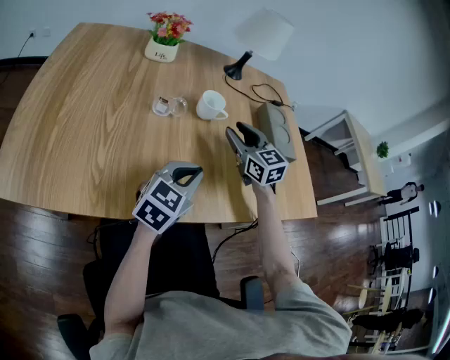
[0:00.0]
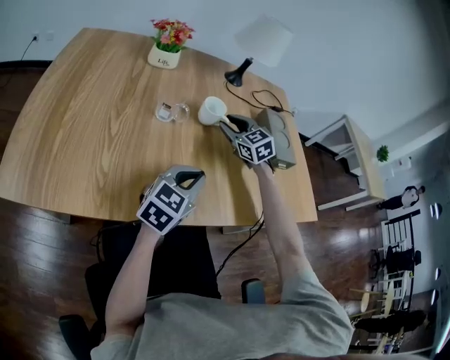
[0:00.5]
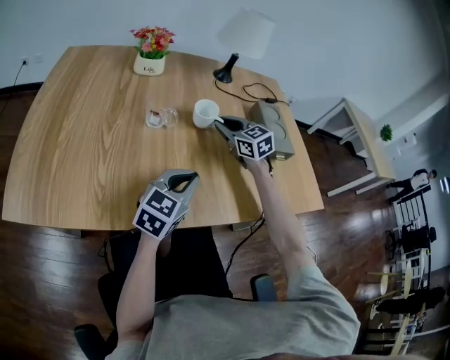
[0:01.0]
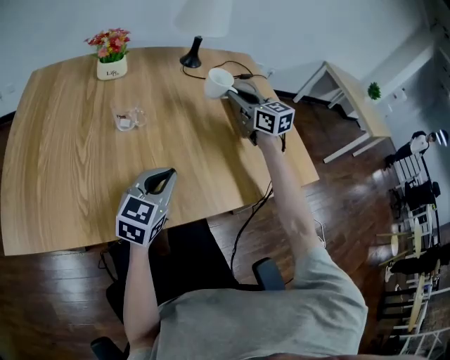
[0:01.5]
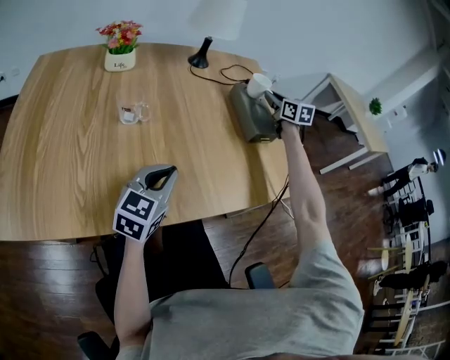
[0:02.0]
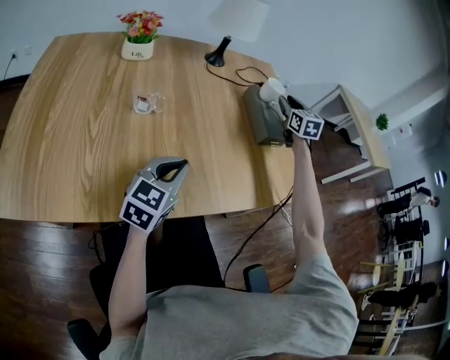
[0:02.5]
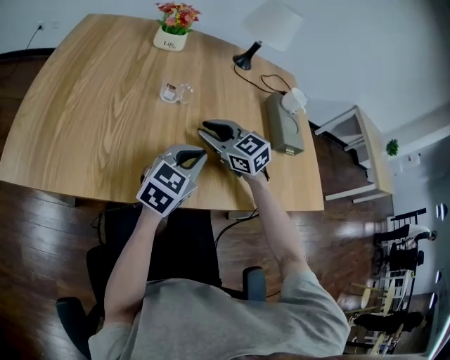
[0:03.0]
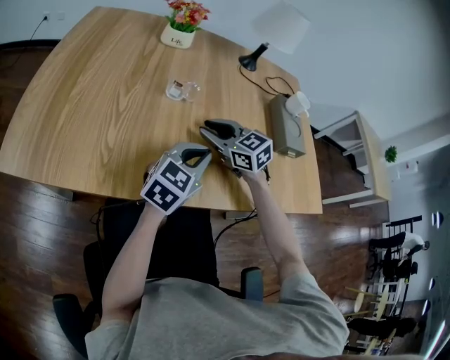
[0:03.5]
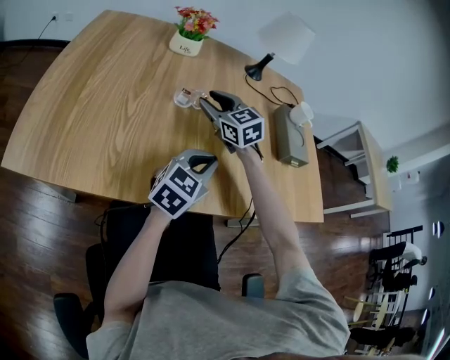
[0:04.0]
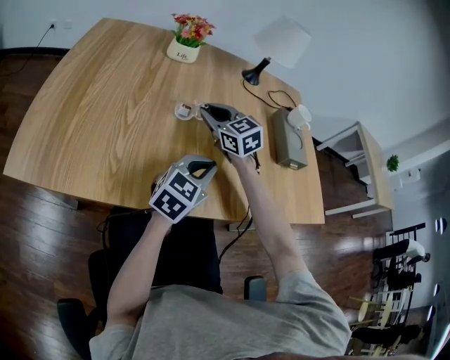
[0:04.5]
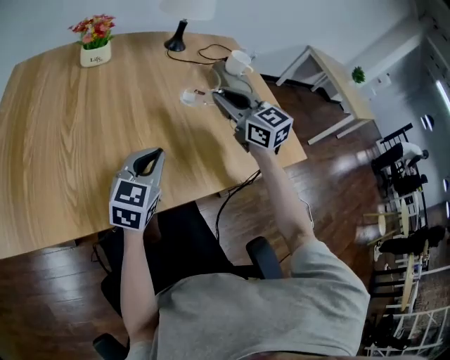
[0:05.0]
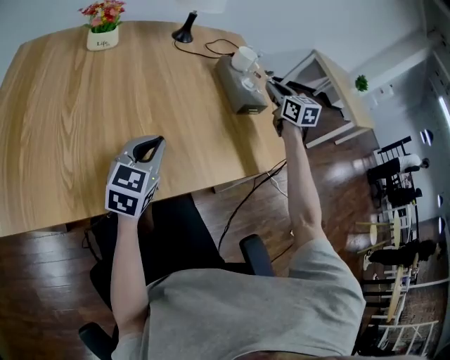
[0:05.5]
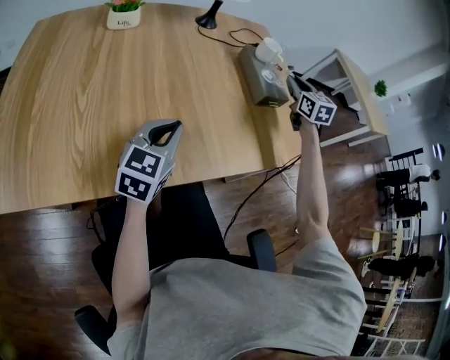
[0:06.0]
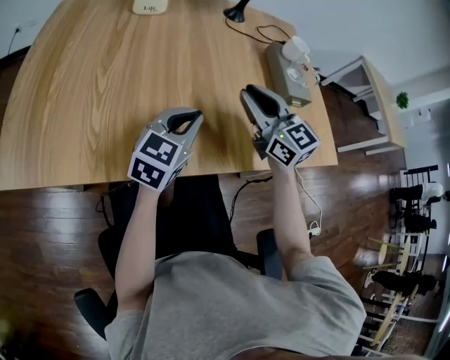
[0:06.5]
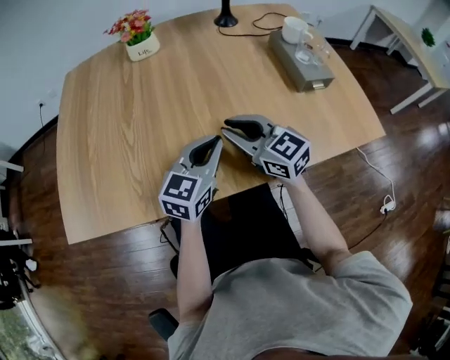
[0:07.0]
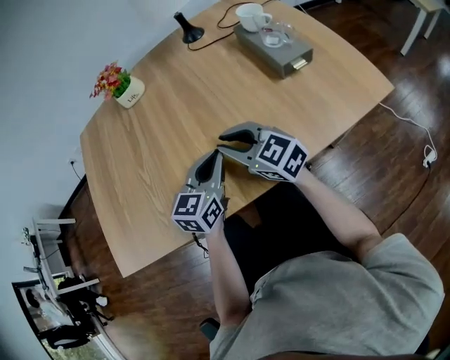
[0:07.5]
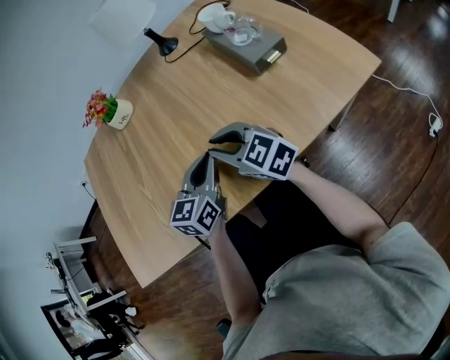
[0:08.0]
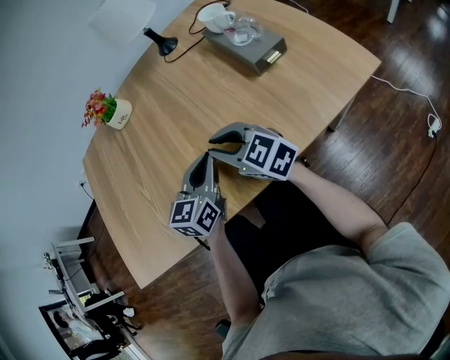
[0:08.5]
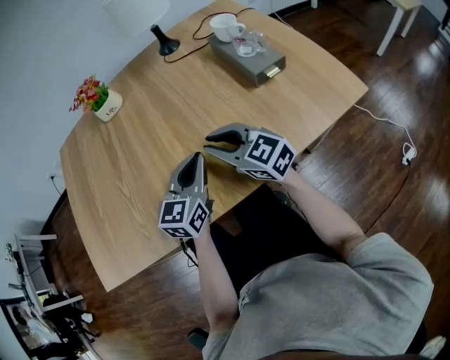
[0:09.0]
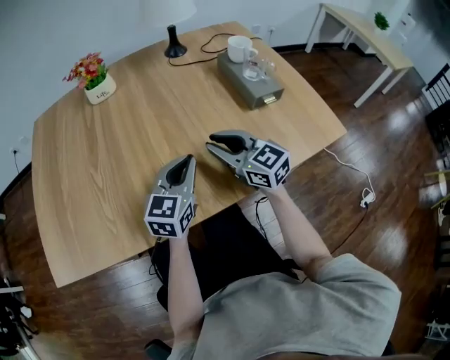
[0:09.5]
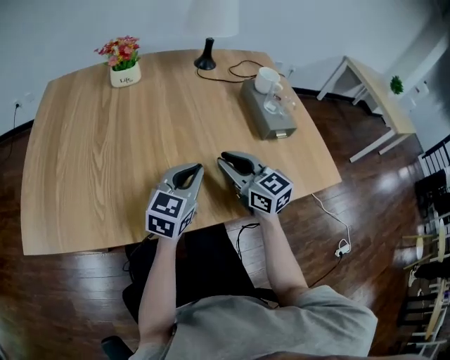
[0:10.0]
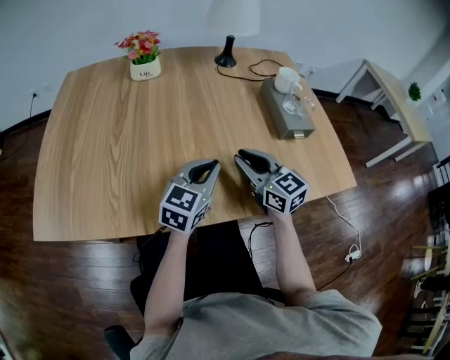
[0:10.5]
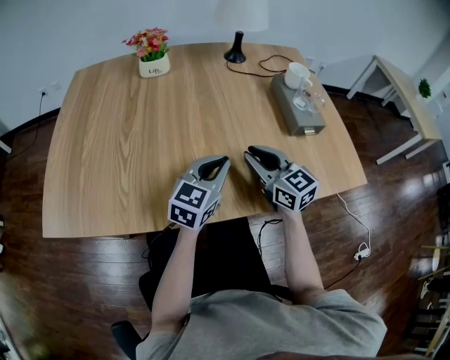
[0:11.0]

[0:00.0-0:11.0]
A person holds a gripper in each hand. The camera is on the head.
0:00.0 to 0:02.0: The right gripper travels to the right and forward by approximately 30 cm, changes its angle by some 20 degrees, and closes its fingers.
0:02.0 to 0:03.5: The right gripper moves roughly 40 cm, and swivels about 50 degrees.
0:03.5 to 0:05.5: The right gripper is displaced to the right by roughly 35 cm, and turns by about 50 degrees.
0:05.5 to 0:07.5: The right gripper travels to the left and backward by roughly 35 cm, and rotates approximately 40 degrees.
0:07.5 to 0:09.0: There are only small adjustments of the grippers.
0:09.0 to 0:11.0: There are only small adjustments of the grippers.

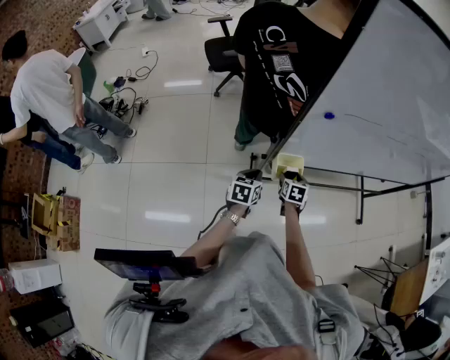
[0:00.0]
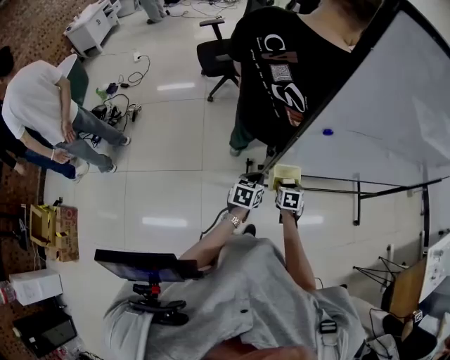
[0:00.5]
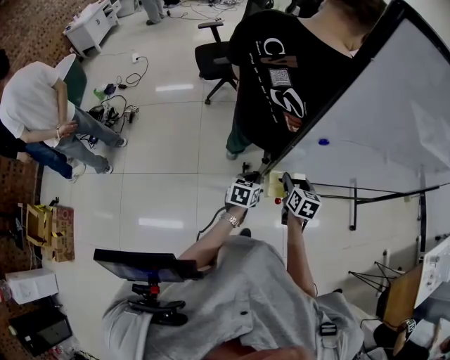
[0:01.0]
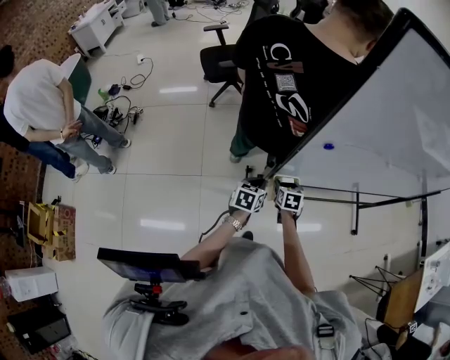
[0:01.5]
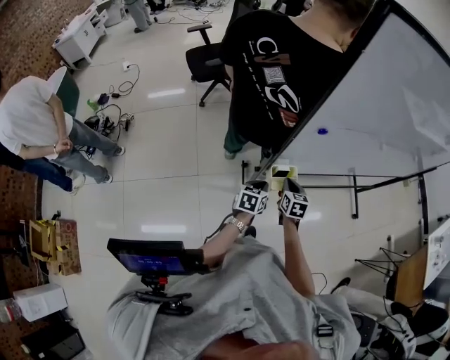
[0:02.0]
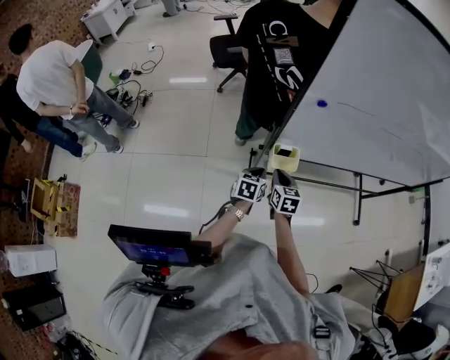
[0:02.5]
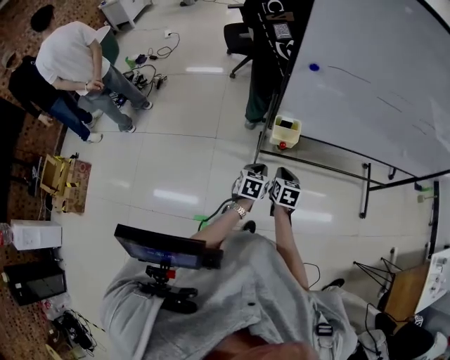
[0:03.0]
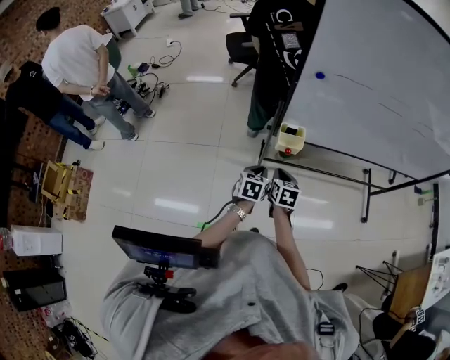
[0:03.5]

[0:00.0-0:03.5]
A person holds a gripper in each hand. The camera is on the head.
0:00.0 to 0:02.0: The right gripper goes up and down, about 15 cm each way, reversing 2 times, and closes its fingers.
0:02.0 to 0:03.5: Both grippers travel together backward, about 15 cm.

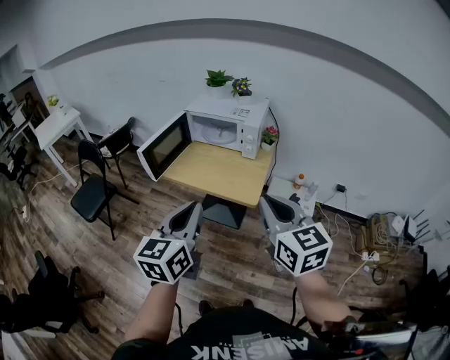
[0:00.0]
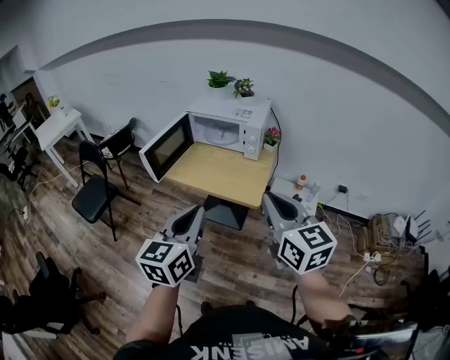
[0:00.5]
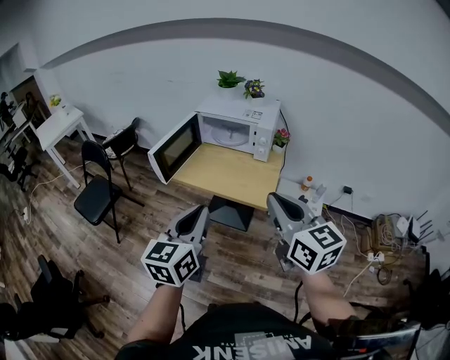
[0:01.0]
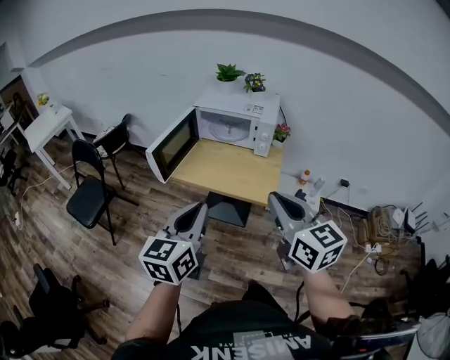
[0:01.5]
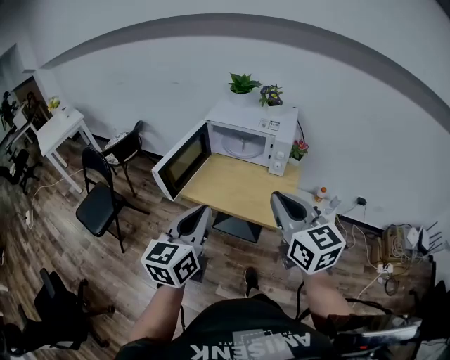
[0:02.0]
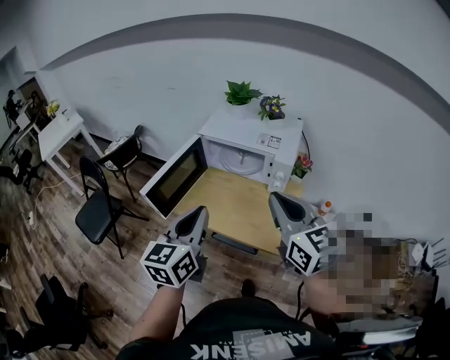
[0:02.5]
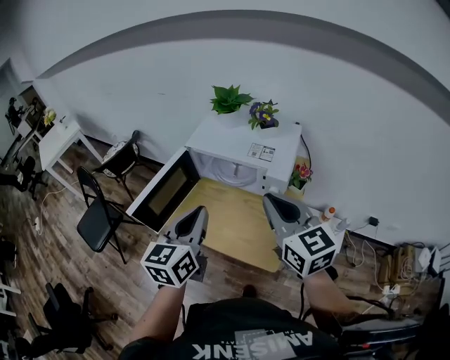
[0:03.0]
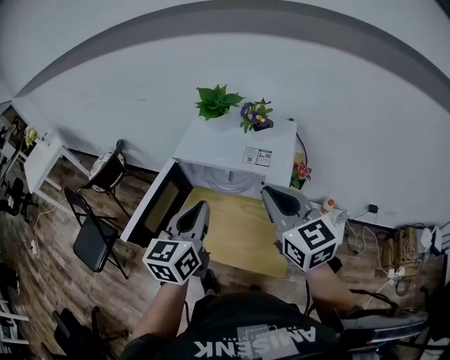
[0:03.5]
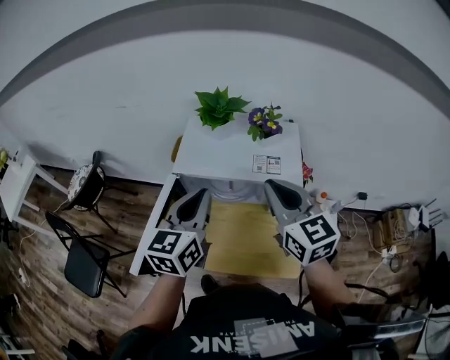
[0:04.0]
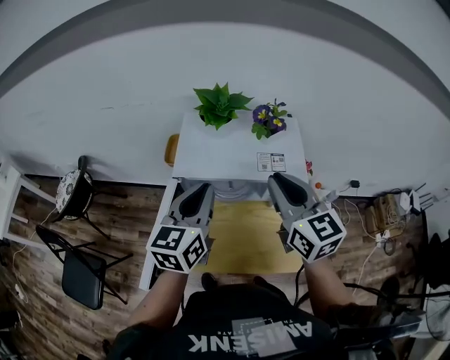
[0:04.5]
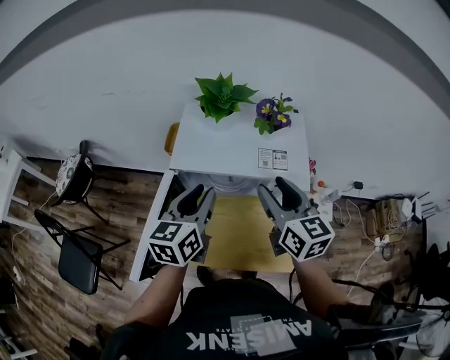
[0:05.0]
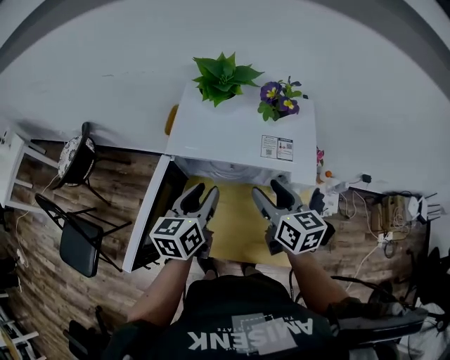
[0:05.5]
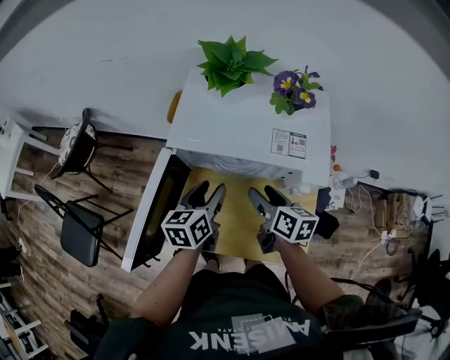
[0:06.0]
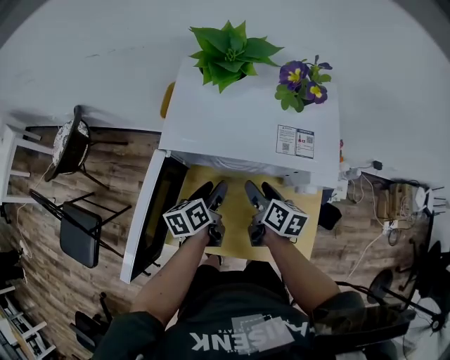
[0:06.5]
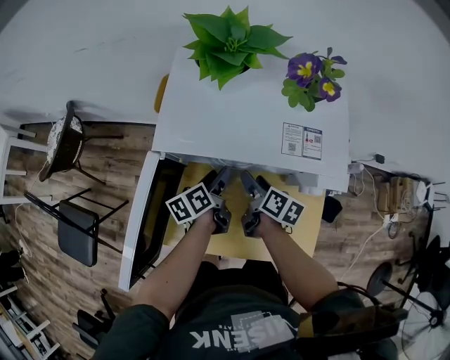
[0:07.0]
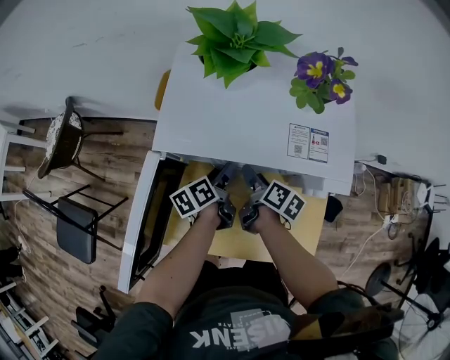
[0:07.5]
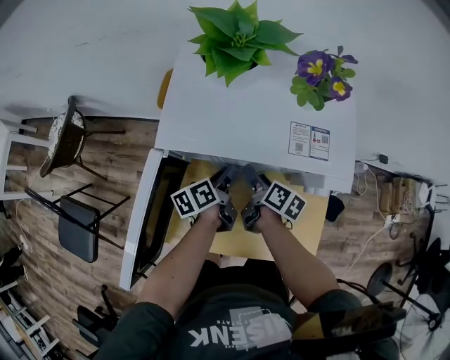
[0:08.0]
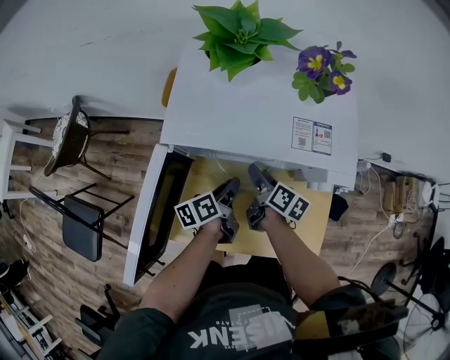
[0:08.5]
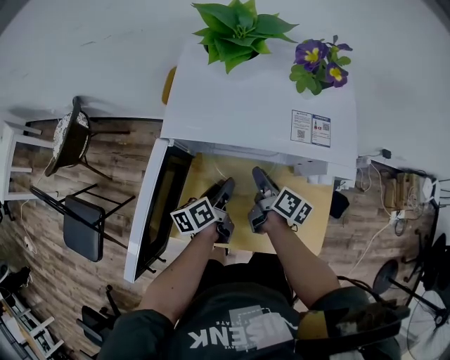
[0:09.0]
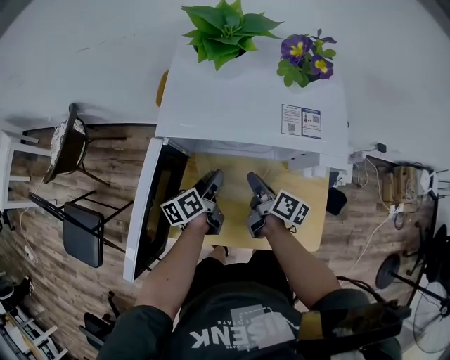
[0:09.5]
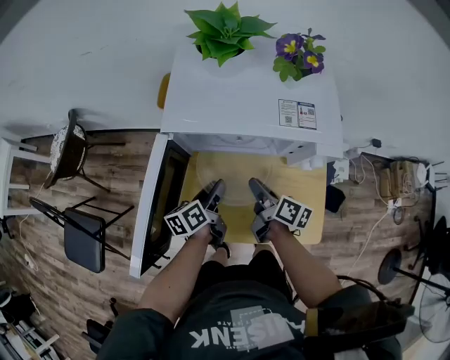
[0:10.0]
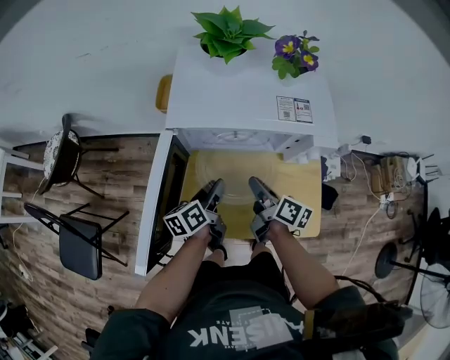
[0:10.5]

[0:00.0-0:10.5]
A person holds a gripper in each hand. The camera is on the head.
0:00.0 to 0:02.0: Both grippers move forward and to the left, approximately 15 cm.
0:02.0 to 0:04.0: The grippers both shift forward by some 40 cm.
0:04.0 to 0:06.5: The grippers both shift downward by approximately 30 cm. The left gripper swivels approximately 40 degrees, and opens. The right gripper rolls clockwise, seen from behind, by approximately 50 degrees, and opens.
0:06.5 to 0:08.5: The right gripper goes approximately 5 cm downward; the left gripper shifts by roughly 5 cm, and closes.
0:08.5 to 0:10.5: The right gripper goes roughly 10 cm backward and upward, and closes, while the left gripper is displaced backward and to the left by some 10 cm.

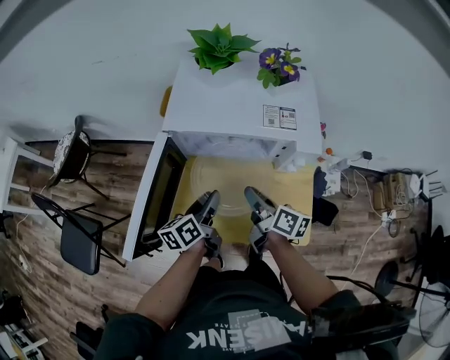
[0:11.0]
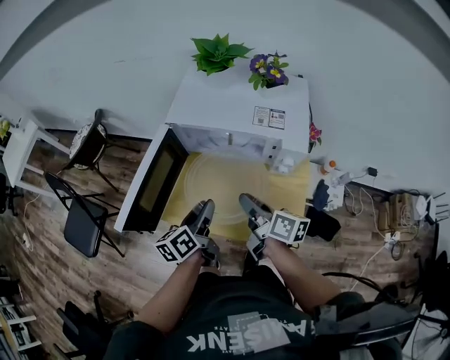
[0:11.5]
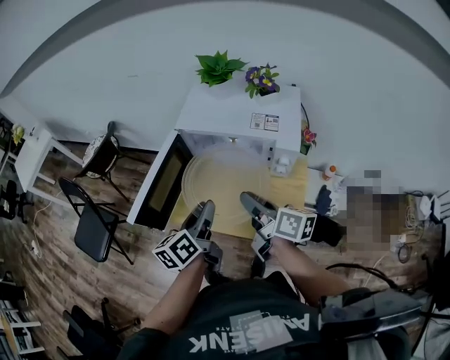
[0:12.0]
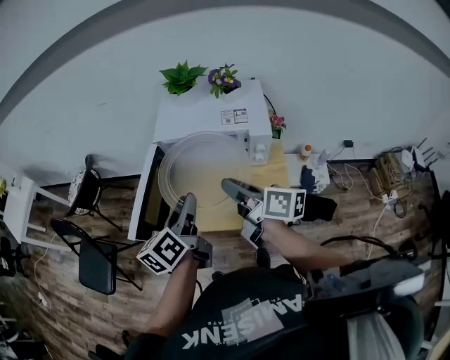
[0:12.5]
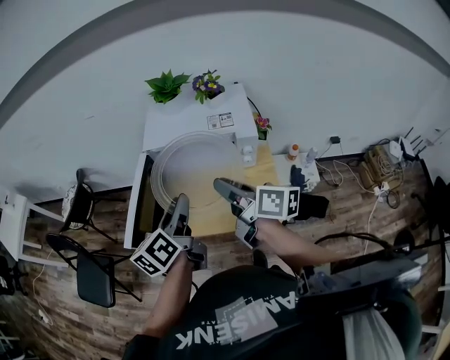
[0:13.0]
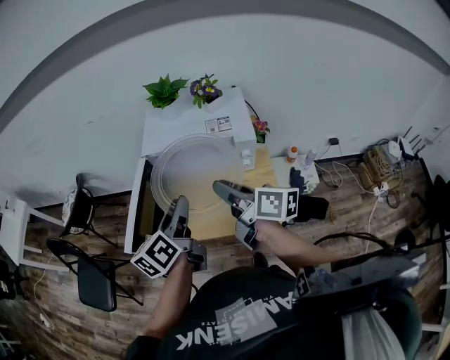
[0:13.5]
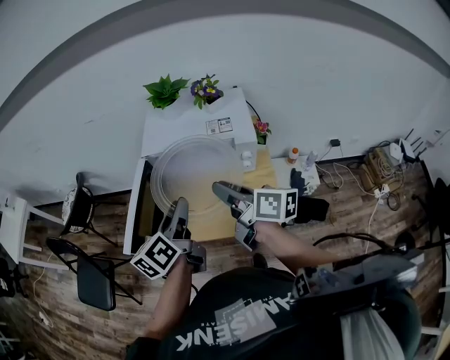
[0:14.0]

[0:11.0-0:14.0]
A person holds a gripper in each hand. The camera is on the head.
0:11.0 to 0:12.5: The two grippers go about 25 cm upward and backward.
0:12.5 to 0:14.0: The grippers move only a little.
